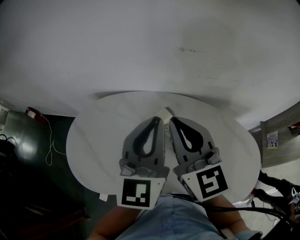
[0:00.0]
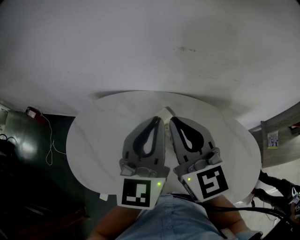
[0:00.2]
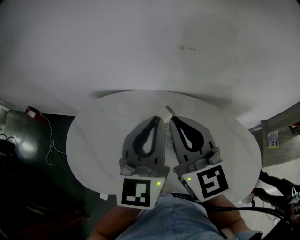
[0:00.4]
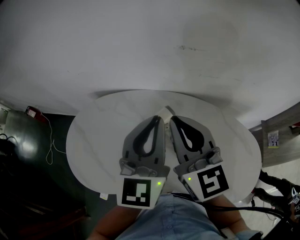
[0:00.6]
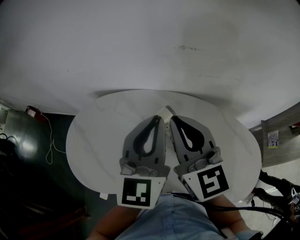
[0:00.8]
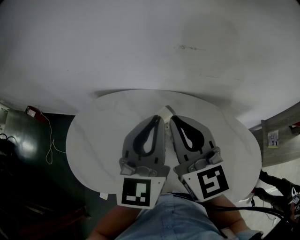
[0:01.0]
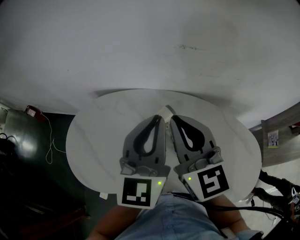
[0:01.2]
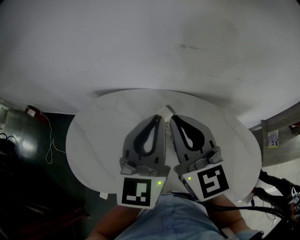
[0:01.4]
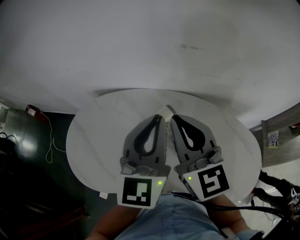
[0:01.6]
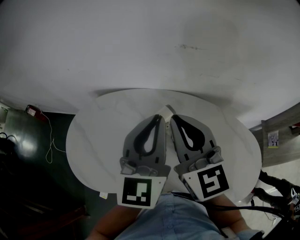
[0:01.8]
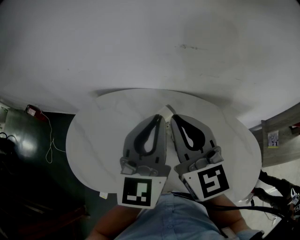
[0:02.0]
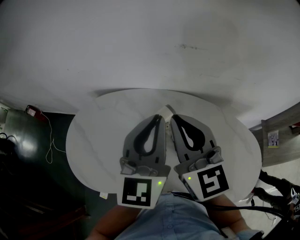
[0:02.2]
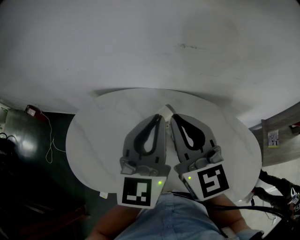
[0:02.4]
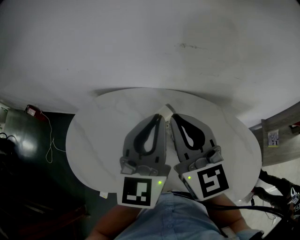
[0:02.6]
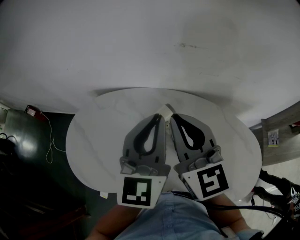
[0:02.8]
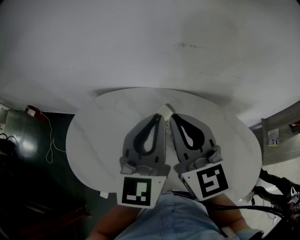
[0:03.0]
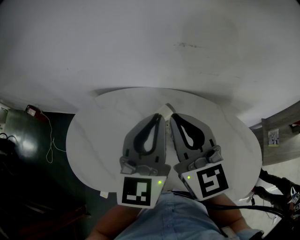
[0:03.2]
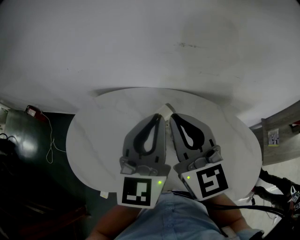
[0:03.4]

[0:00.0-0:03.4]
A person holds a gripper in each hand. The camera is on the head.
0:00.0 to 0:03.4: Both grippers stay put.

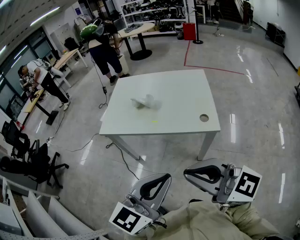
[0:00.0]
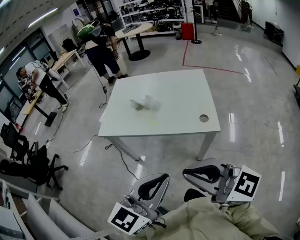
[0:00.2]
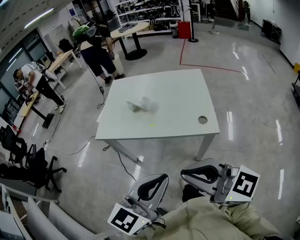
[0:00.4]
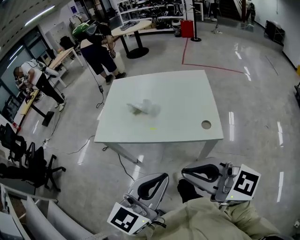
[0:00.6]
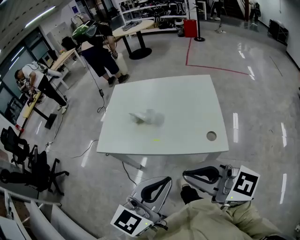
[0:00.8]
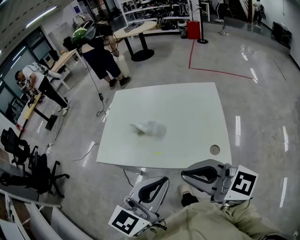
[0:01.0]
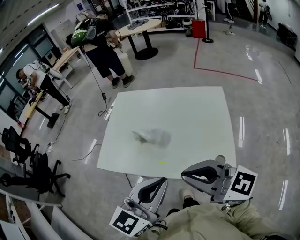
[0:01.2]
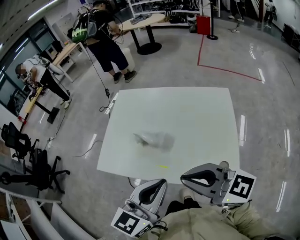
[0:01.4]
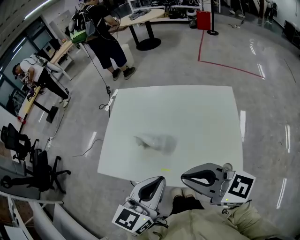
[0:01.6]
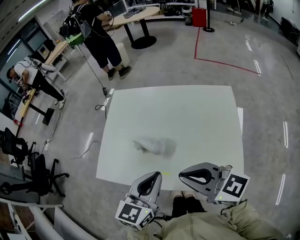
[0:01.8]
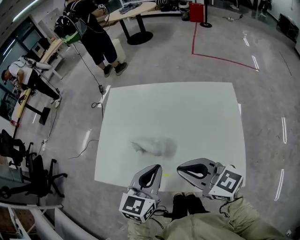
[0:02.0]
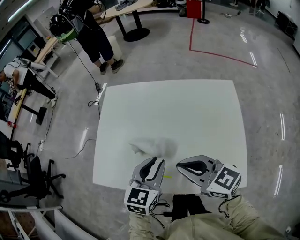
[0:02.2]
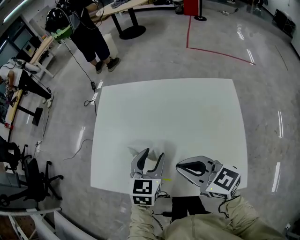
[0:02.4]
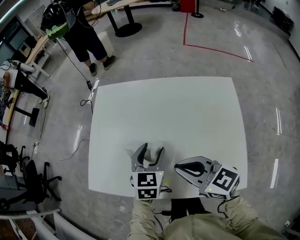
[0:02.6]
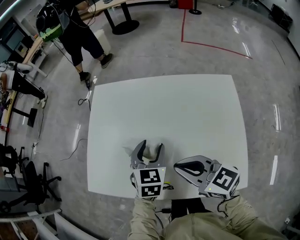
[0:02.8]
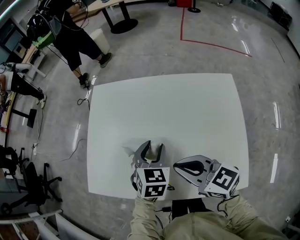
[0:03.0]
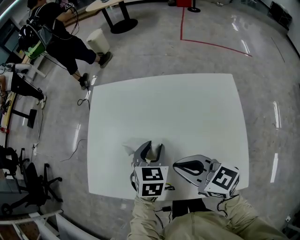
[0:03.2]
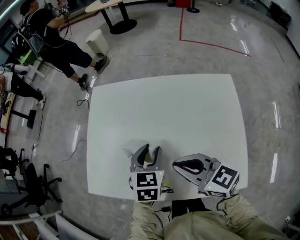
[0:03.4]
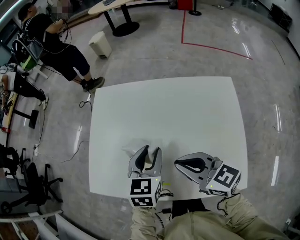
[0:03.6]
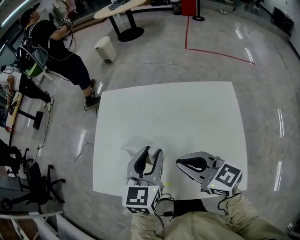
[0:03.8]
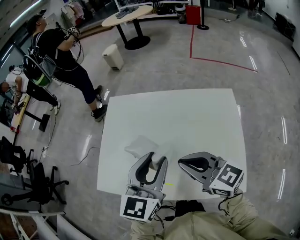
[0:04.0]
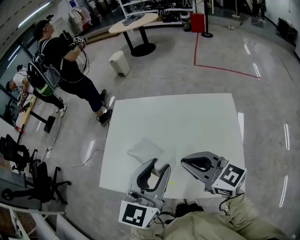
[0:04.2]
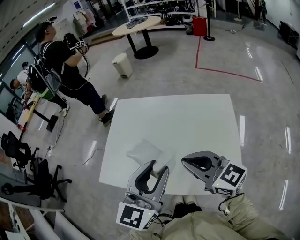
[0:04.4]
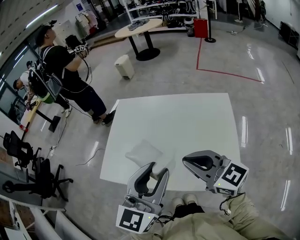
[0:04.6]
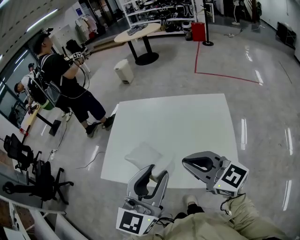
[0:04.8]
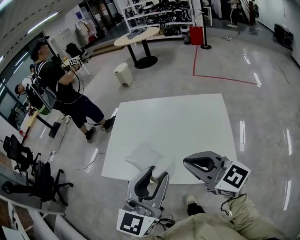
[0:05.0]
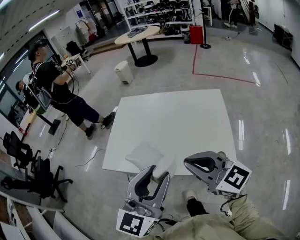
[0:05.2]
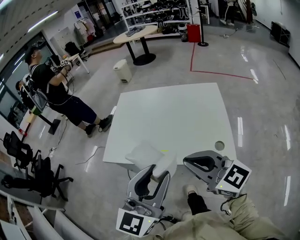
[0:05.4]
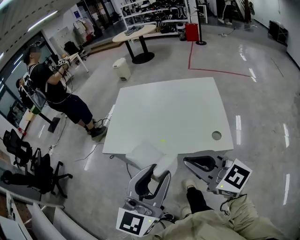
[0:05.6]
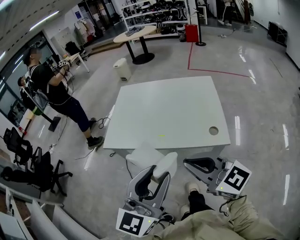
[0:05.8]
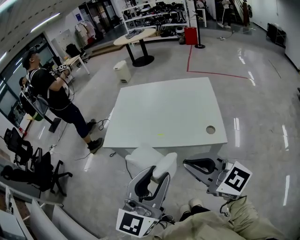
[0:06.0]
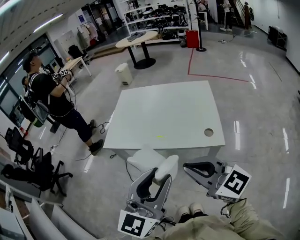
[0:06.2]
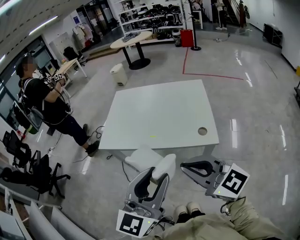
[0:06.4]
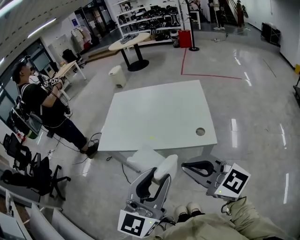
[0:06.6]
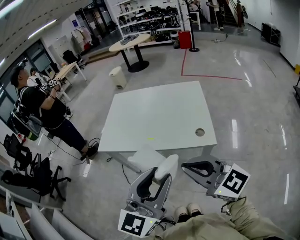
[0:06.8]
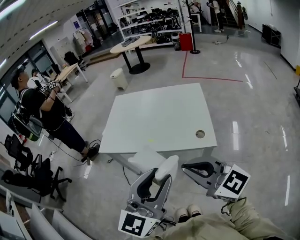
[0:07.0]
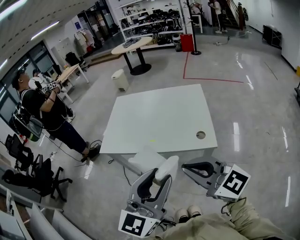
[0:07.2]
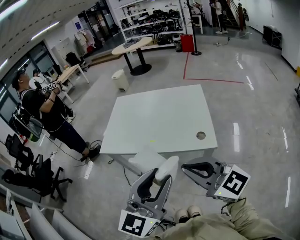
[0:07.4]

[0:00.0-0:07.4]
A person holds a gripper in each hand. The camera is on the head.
0:00.0 to 0:01.4: Both grippers move forward, some 30 cm.
0:01.4 to 0:03.0: The grippers both shift forward and downward by some 25 cm. The right gripper rotates approximately 20 degrees. The left gripper tips its fingers downward by approximately 30 degrees, and opens its fingers.
0:03.0 to 0:04.4: The right gripper shifts roughly 10 cm upward and backward, while the left gripper travels upward and backward by about 25 cm, and tilts its fingers about 40 degrees upward.
0:04.4 to 0:06.0: Both grippers move backward, about 30 cm.
0:06.0 to 0:07.4: The left gripper moves to the right, roughly 5 cm. The right gripper changes place by roughly 5 cm.

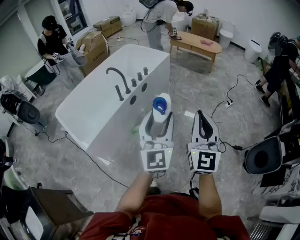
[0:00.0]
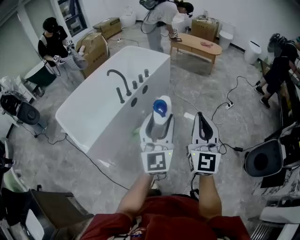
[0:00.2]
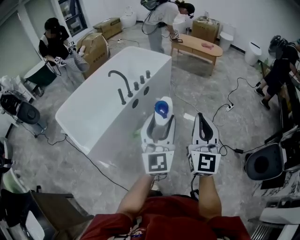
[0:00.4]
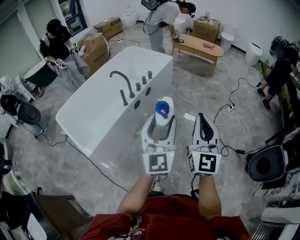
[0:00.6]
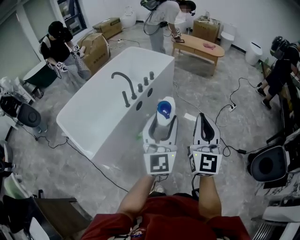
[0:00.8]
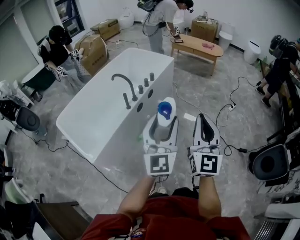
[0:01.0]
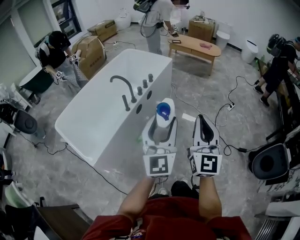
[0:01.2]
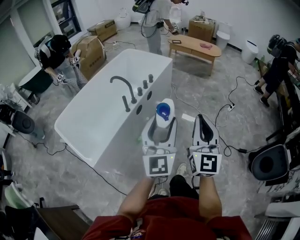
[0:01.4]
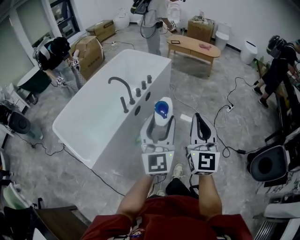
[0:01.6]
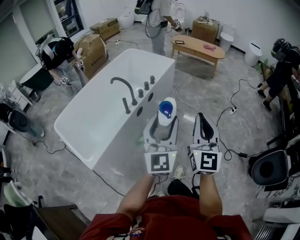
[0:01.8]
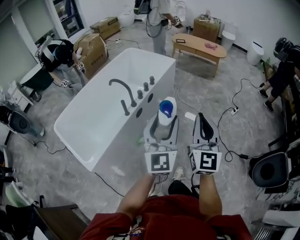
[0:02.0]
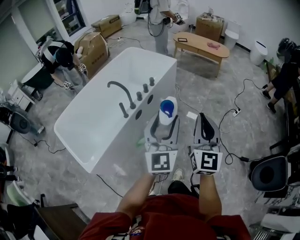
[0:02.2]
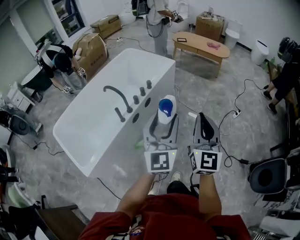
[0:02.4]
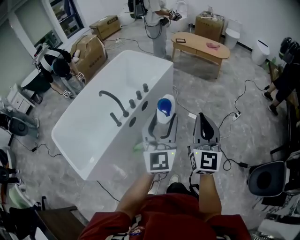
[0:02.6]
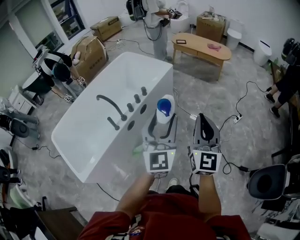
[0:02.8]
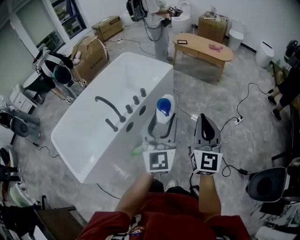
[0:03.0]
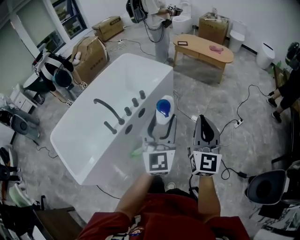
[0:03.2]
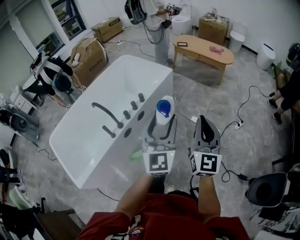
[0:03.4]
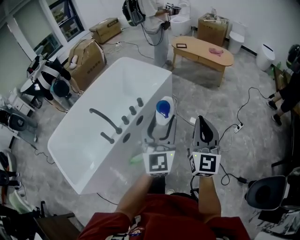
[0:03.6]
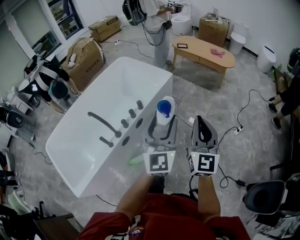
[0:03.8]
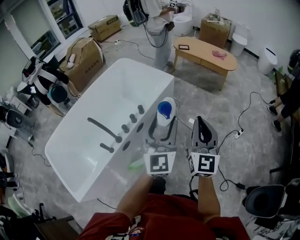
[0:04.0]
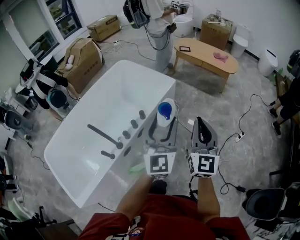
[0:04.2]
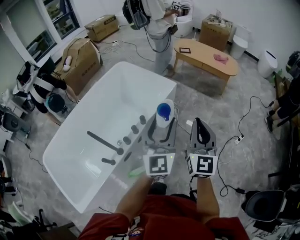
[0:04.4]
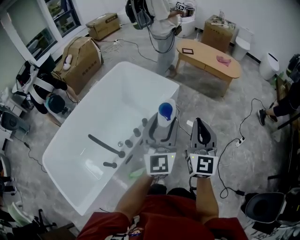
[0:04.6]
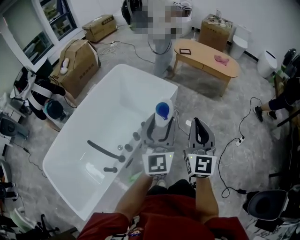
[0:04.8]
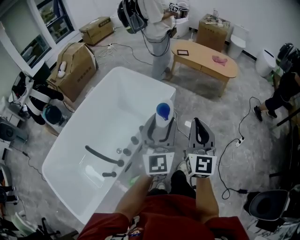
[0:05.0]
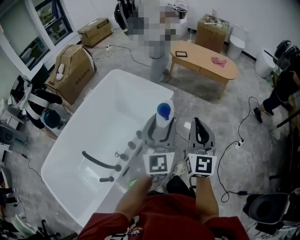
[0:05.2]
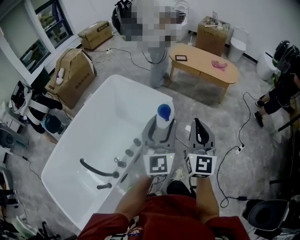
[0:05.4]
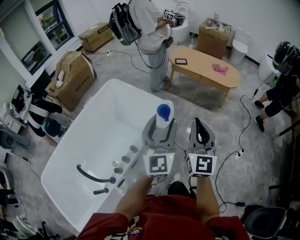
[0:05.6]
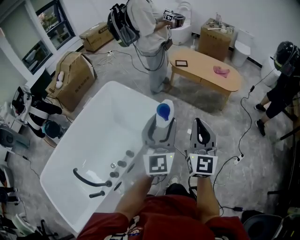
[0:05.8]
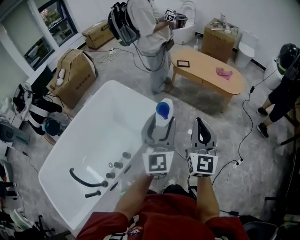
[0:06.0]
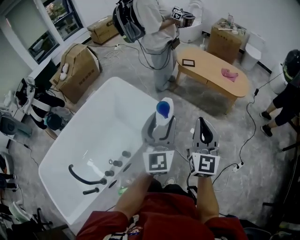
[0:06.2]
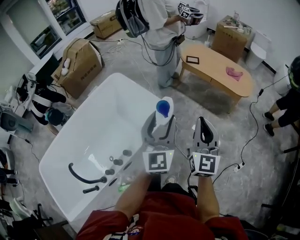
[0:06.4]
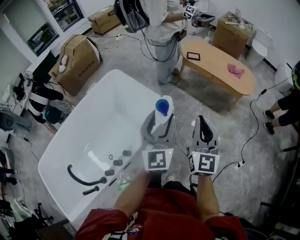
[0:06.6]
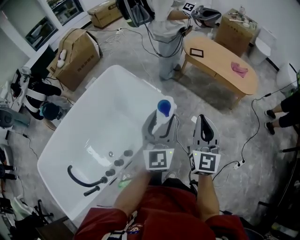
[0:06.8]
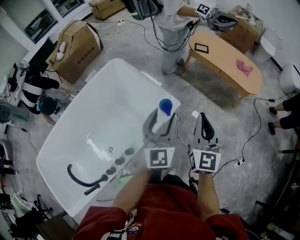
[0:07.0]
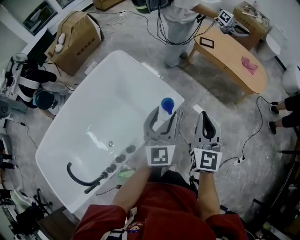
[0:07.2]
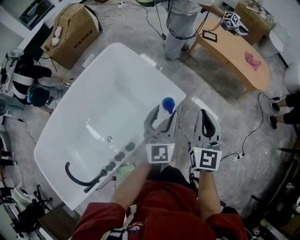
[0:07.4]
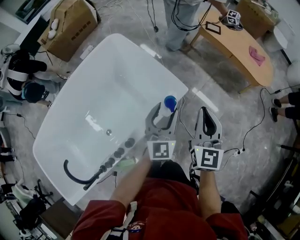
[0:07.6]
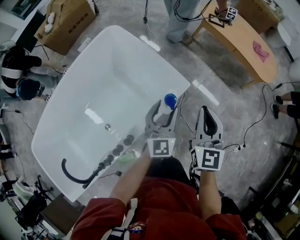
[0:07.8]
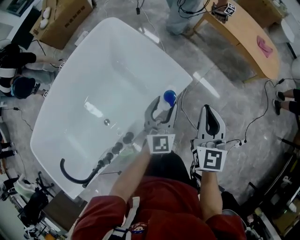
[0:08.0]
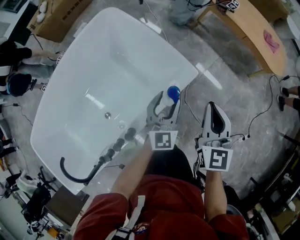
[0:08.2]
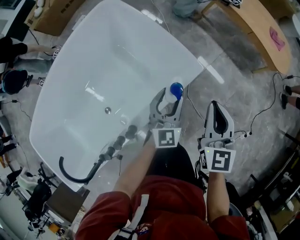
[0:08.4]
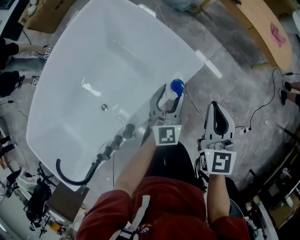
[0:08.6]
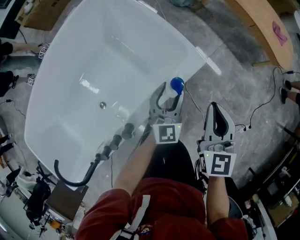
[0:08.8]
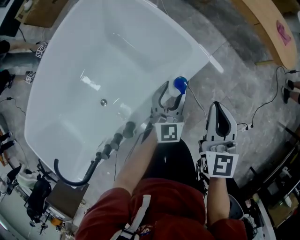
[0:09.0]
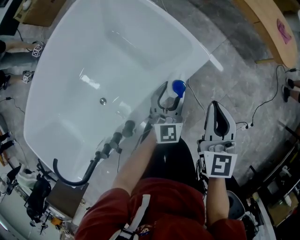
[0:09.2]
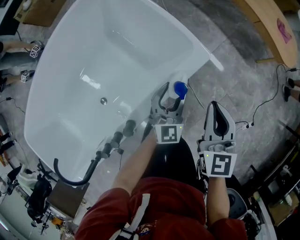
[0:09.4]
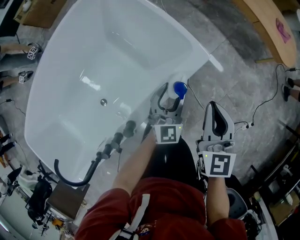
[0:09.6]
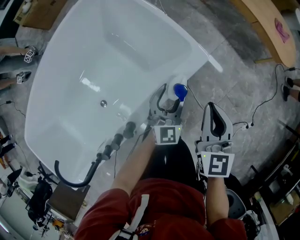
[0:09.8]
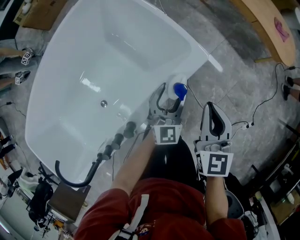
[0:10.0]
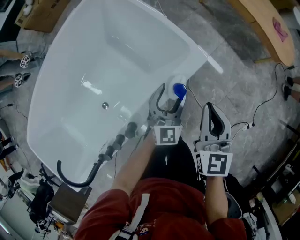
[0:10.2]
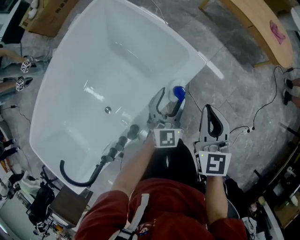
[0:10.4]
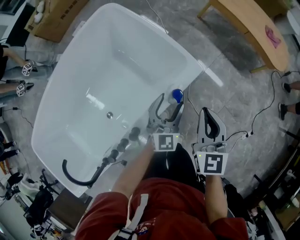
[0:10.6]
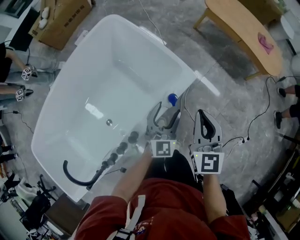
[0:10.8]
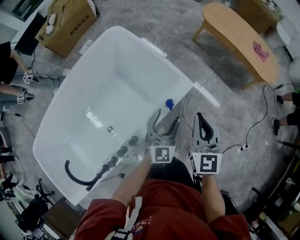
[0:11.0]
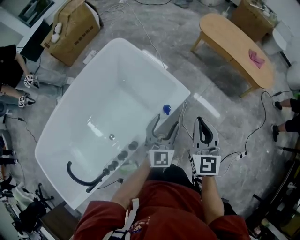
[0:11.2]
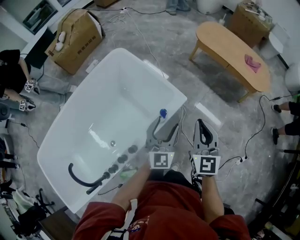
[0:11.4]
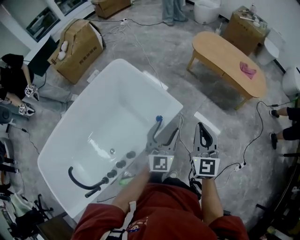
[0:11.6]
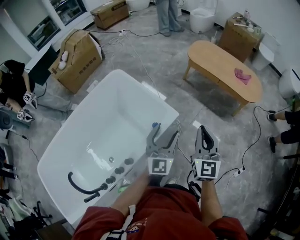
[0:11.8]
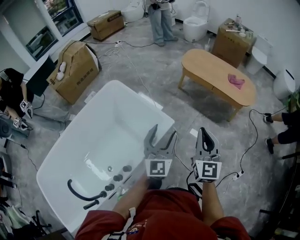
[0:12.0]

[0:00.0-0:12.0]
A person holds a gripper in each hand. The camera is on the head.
0:00.0 to 0:01.6: The grippers both shift to the left and forward by some 15 cm.
0:01.6 to 0:03.0: Both grippers move forward and to the right, some 30 cm.
0:03.0 to 0:04.4: The grippers both shift forward by about 30 cm.
0:04.4 to 0:06.0: Both grippers move forward, approximately 30 cm.
0:06.0 to 0:07.6: The left gripper shifts about 30 cm downward, forward and to the left. The right gripper heads forward, downward and to the left, covering some 25 cm, and swivels about 20 degrees.
0:07.6 to 0:09.0: The grippers both shift downward by some 15 cm.
0:09.0 to 0:10.4: The grippers move only a little.
0:10.4 to 0:12.0: The left gripper moves upward, some 30 cm; the right gripper goes about 25 cm upward and to the right, and rotates about 20 degrees.

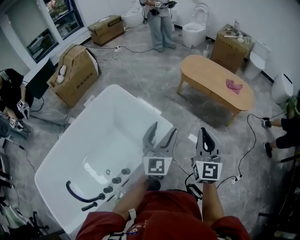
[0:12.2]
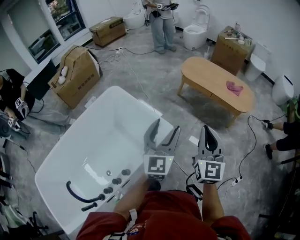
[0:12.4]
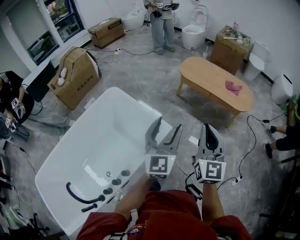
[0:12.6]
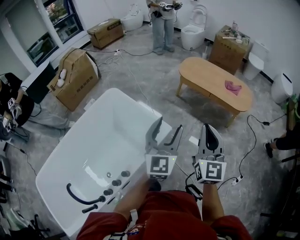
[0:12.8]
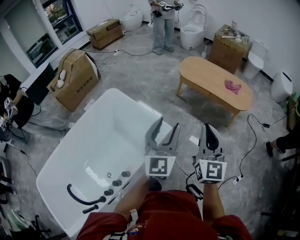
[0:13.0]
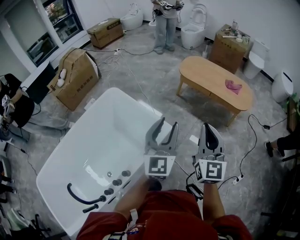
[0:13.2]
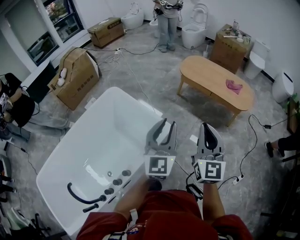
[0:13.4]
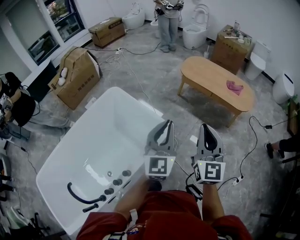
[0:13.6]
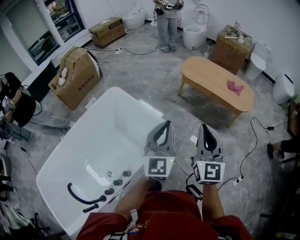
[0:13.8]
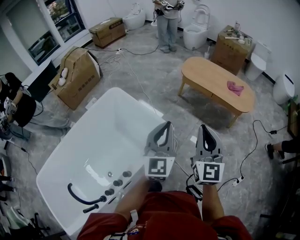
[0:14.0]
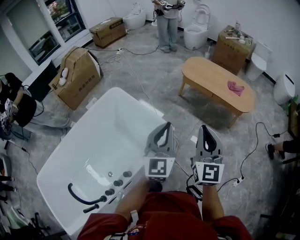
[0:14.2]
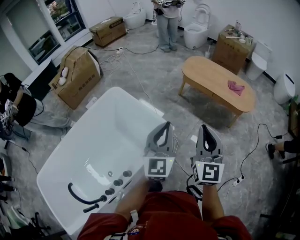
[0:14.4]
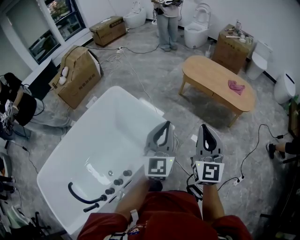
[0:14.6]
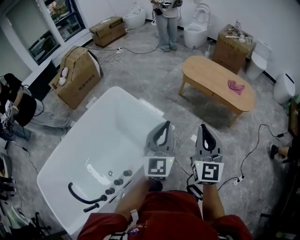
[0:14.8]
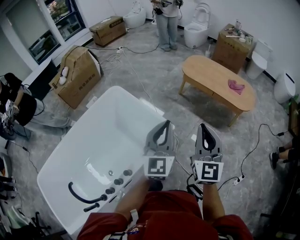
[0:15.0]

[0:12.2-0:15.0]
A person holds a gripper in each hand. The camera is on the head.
0:12.2 to 0:13.6: The left gripper closes its fingers.
0:13.6 to 0:15.0: Both grippers stay put.
